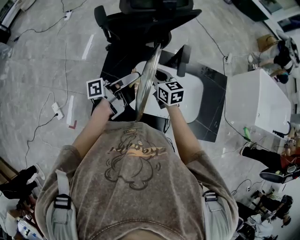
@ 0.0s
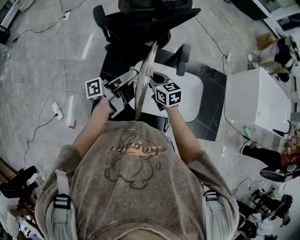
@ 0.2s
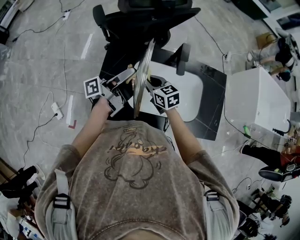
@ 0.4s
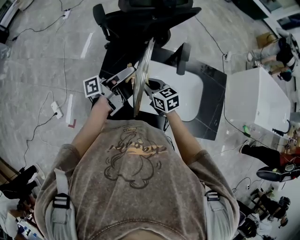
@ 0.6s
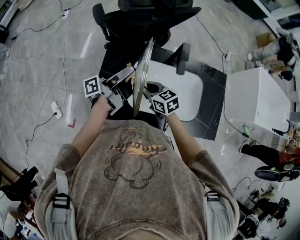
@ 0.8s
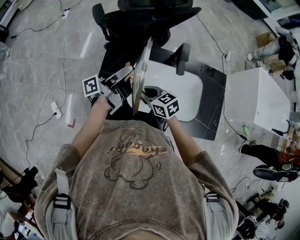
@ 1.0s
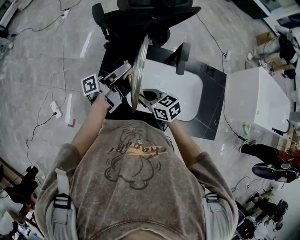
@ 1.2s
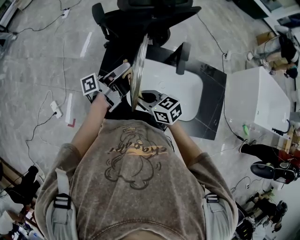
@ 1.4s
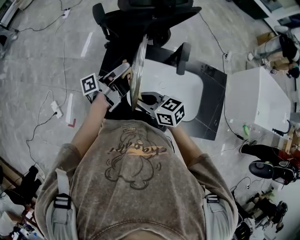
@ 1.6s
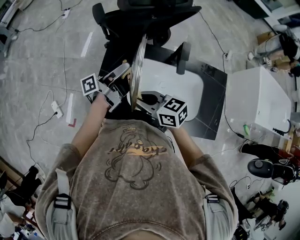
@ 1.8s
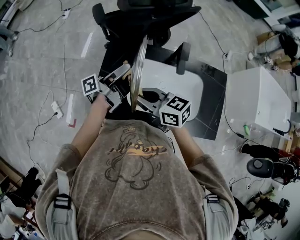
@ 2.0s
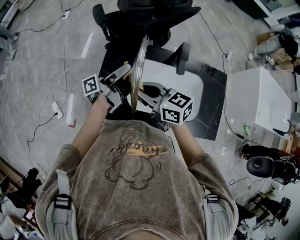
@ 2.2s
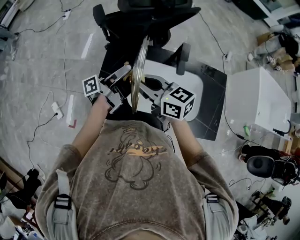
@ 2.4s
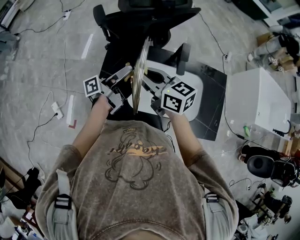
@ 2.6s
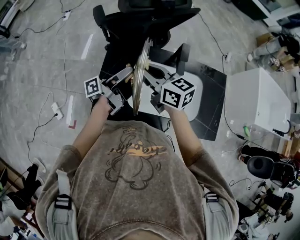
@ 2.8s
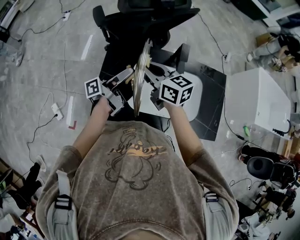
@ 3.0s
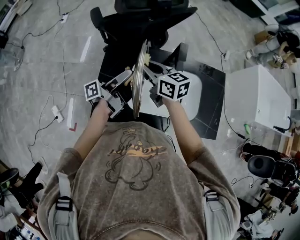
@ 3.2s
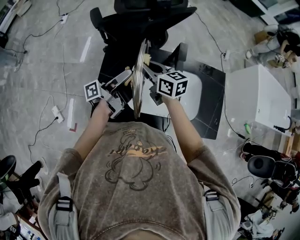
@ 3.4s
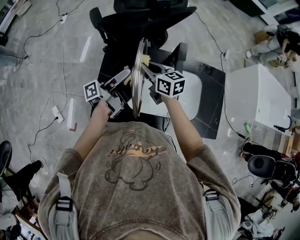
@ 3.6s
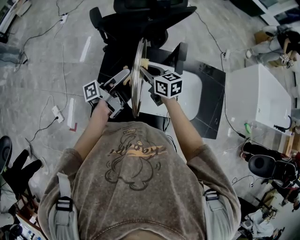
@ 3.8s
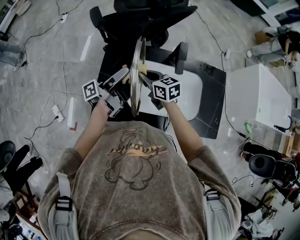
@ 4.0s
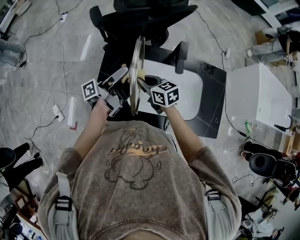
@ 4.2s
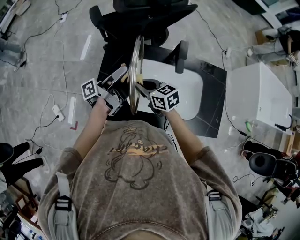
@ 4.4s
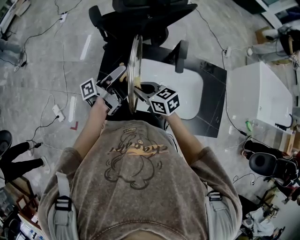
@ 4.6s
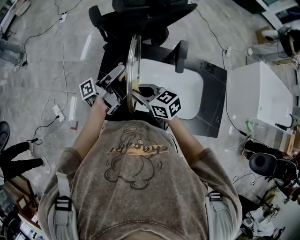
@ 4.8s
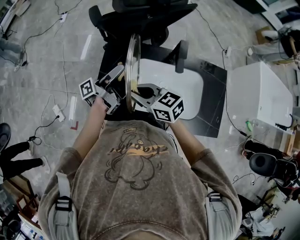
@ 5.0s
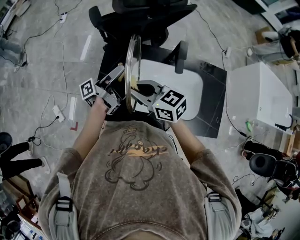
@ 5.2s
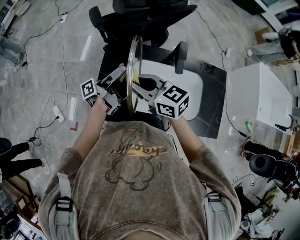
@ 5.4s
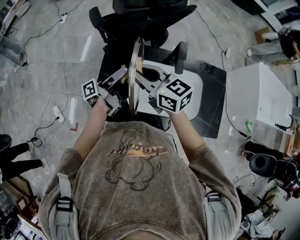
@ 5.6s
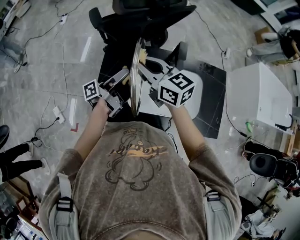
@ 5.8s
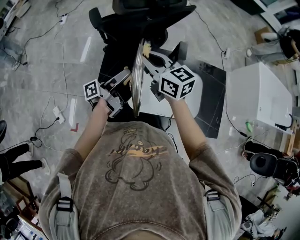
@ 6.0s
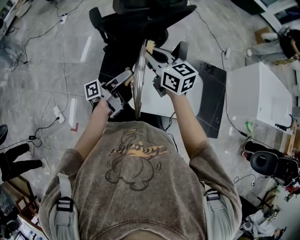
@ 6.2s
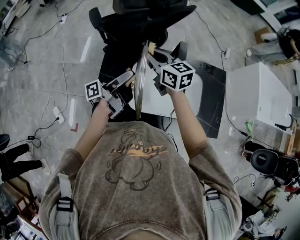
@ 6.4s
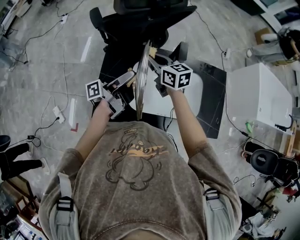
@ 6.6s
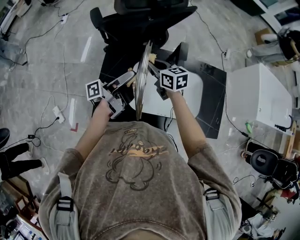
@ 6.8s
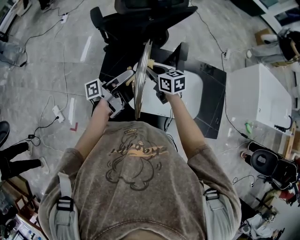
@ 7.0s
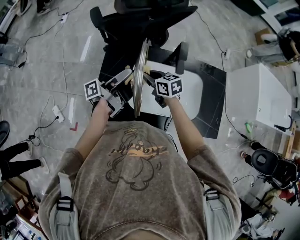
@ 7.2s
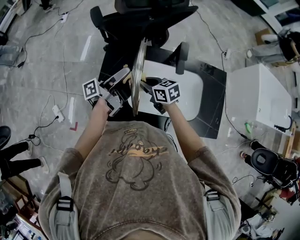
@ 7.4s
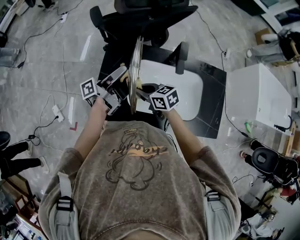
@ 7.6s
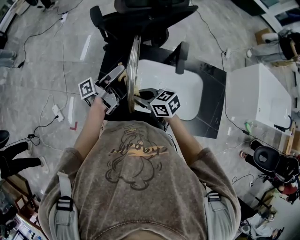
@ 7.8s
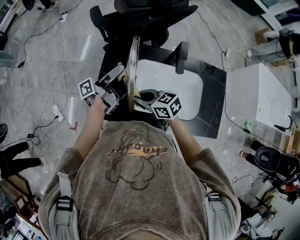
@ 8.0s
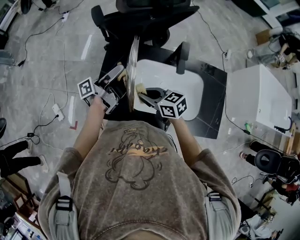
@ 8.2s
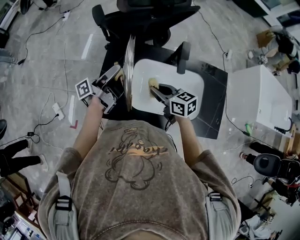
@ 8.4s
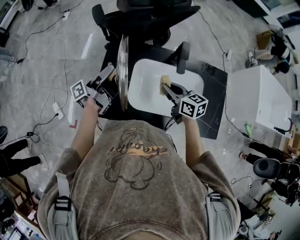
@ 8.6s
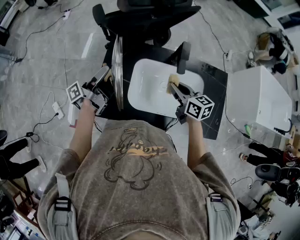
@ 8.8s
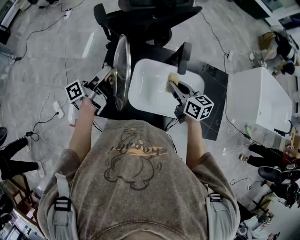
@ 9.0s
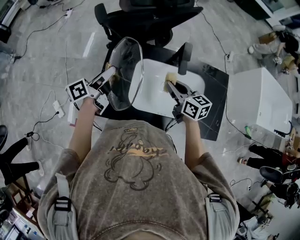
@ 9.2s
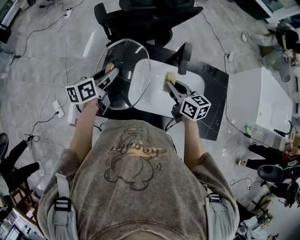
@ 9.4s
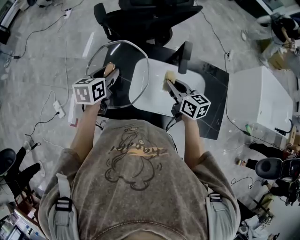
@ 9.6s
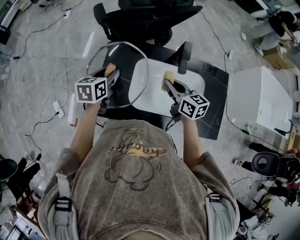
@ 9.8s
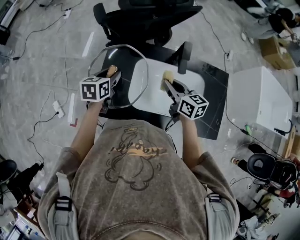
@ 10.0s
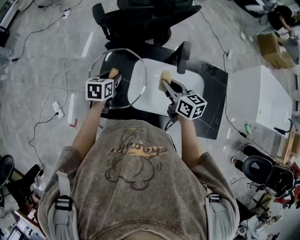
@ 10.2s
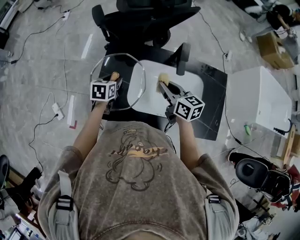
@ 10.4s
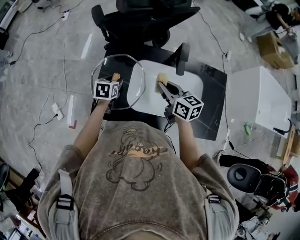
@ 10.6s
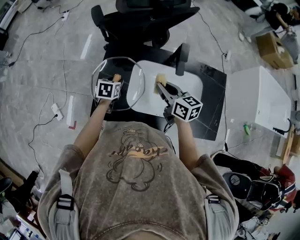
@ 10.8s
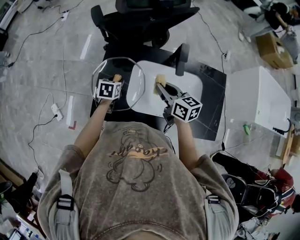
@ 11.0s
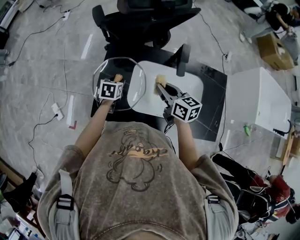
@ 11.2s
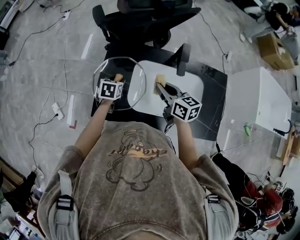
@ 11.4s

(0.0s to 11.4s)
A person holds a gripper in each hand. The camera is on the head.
0.0s - 1.4s: The right gripper goes some 15 cm backward and to the left, and changes its angle by some 30 degrees.
1.4s - 2.8s: The right gripper moves upward and forward, approximately 15 cm, and rotates approximately 20 degrees.
2.8s - 4.2s: The right gripper heads downward, covering roughly 15 cm.
4.2s - 5.6s: The right gripper heads upward, covering about 15 cm, and turns by some 20 degrees.
5.6s - 7.2s: The right gripper heads downward, covering some 20 cm, and swivels approximately 20 degrees.
7.2s - 8.6s: The right gripper moves backward, to the right and upward, approximately 10 cm, while the left gripper shifts approximately 5 cm to the left.
8.6s - 10.0s: The left gripper goes about 5 cm downward, and tilts its fingers about 50 degrees downward.
10.0s - 11.4s: The left gripper moves downward, approximately 10 cm.

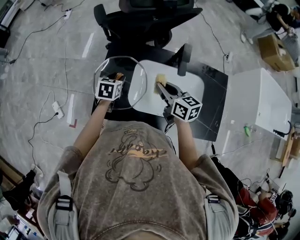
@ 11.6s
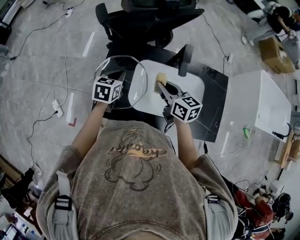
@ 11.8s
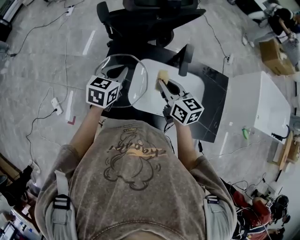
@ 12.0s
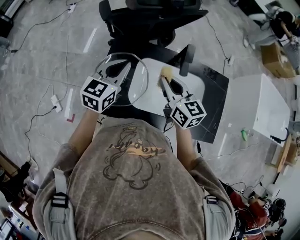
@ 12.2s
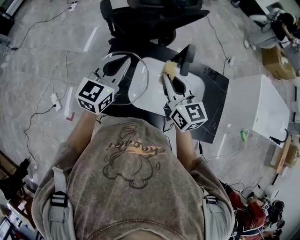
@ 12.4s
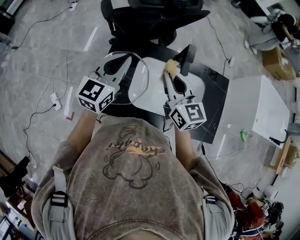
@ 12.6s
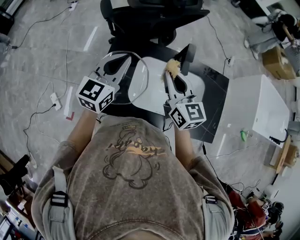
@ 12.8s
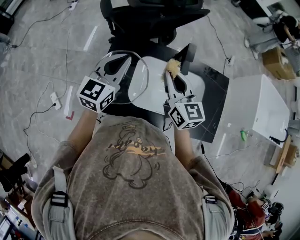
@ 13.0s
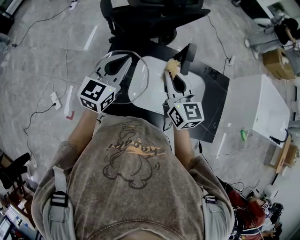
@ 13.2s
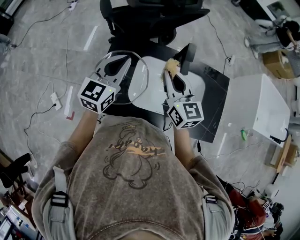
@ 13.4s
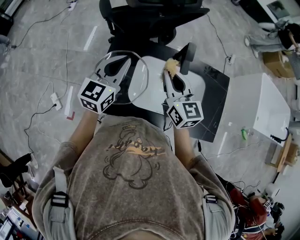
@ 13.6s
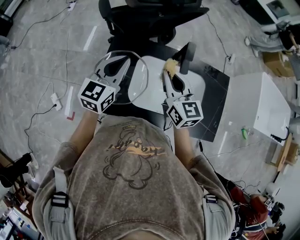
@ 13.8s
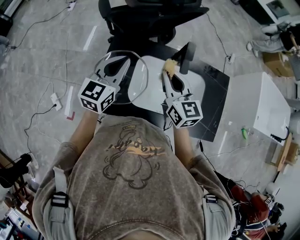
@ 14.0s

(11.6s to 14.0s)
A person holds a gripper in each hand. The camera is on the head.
11.6s - 12.8s: The left gripper goes approximately 20 cm upward, points its fingers some 40 degrees further upward, and closes its fingers; the right gripper heads upward, covering roughly 10 cm, and changes its angle by approximately 30 degrees.
12.8s - 14.0s: The grippers make only small movements.

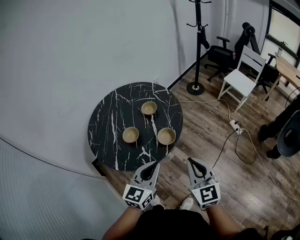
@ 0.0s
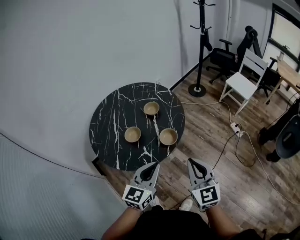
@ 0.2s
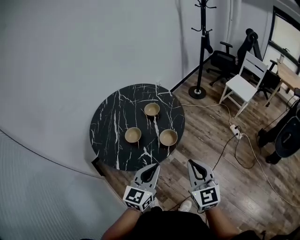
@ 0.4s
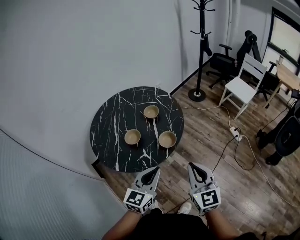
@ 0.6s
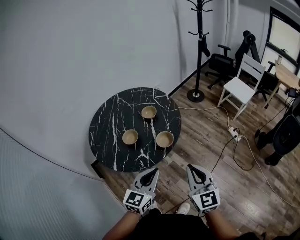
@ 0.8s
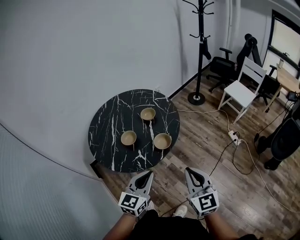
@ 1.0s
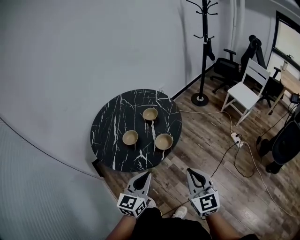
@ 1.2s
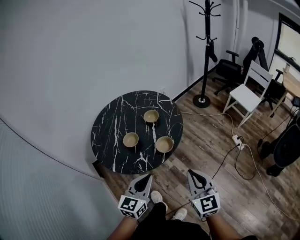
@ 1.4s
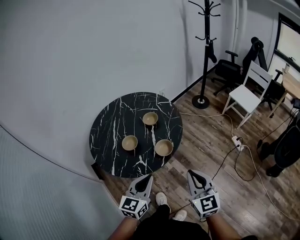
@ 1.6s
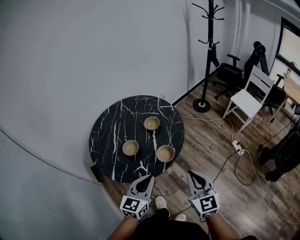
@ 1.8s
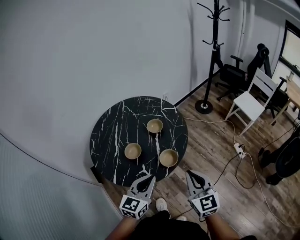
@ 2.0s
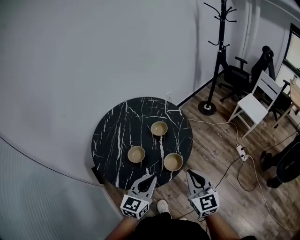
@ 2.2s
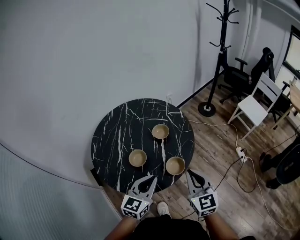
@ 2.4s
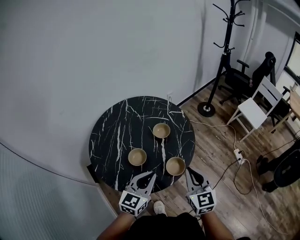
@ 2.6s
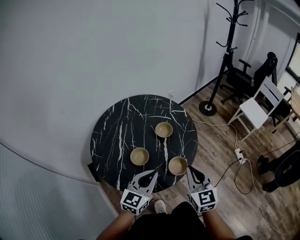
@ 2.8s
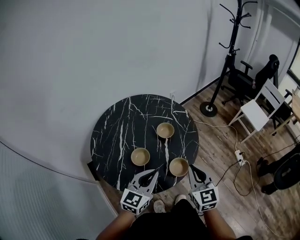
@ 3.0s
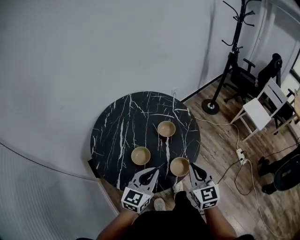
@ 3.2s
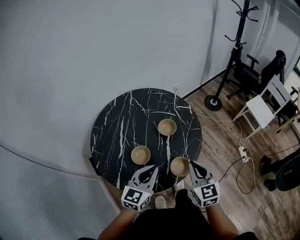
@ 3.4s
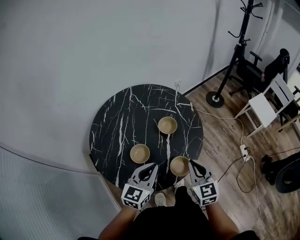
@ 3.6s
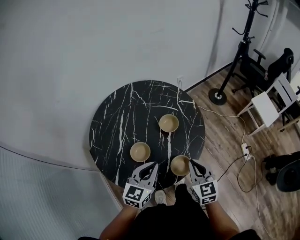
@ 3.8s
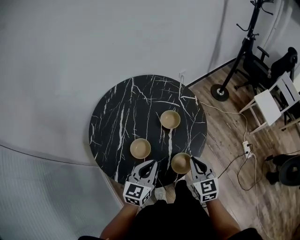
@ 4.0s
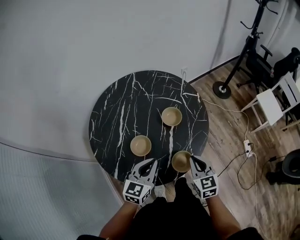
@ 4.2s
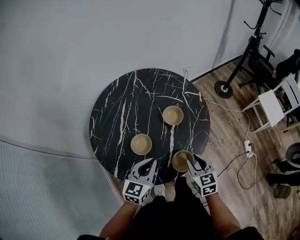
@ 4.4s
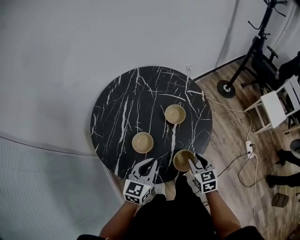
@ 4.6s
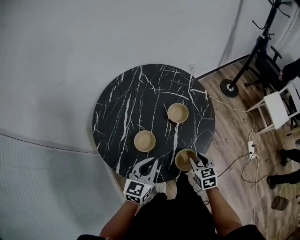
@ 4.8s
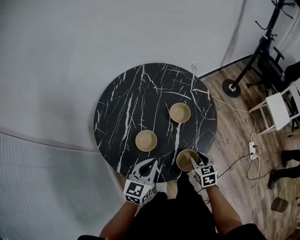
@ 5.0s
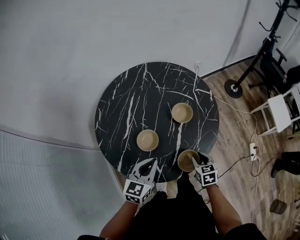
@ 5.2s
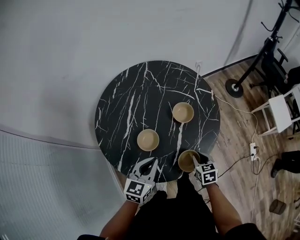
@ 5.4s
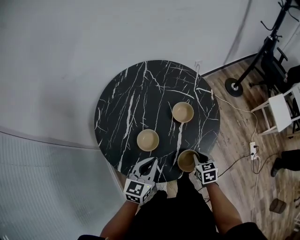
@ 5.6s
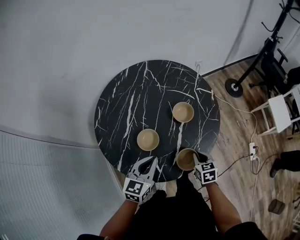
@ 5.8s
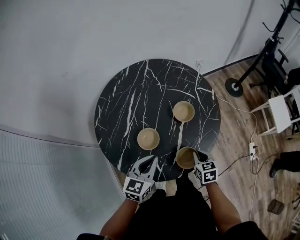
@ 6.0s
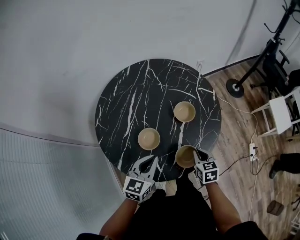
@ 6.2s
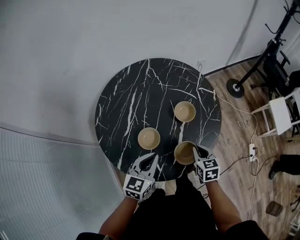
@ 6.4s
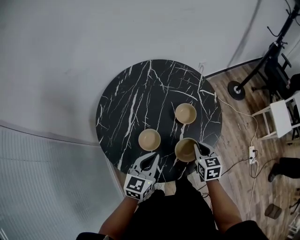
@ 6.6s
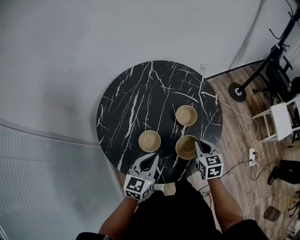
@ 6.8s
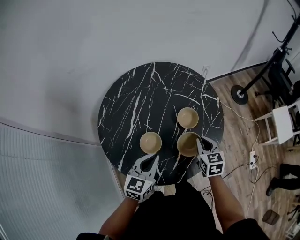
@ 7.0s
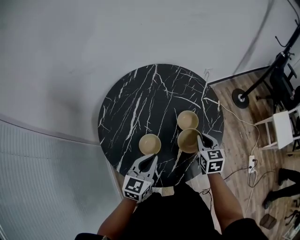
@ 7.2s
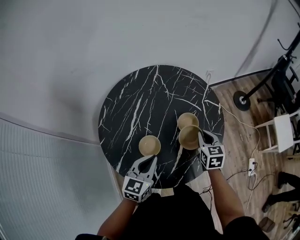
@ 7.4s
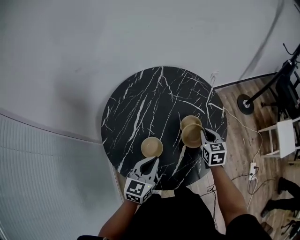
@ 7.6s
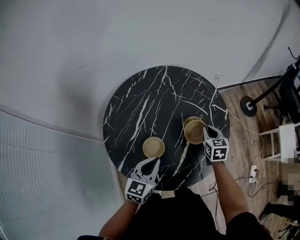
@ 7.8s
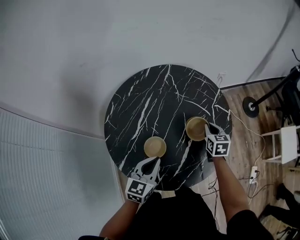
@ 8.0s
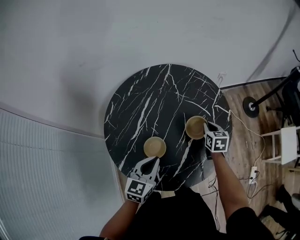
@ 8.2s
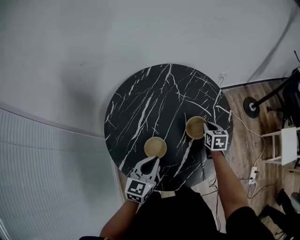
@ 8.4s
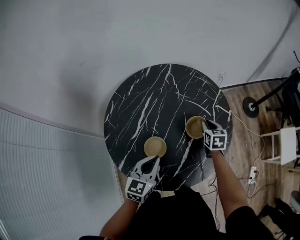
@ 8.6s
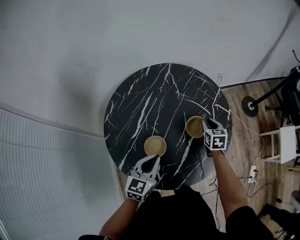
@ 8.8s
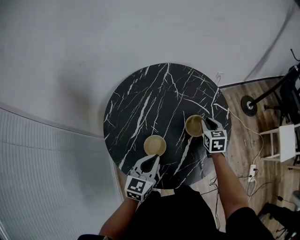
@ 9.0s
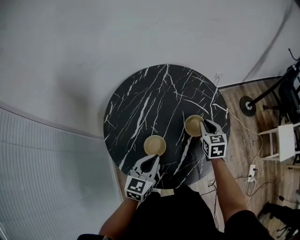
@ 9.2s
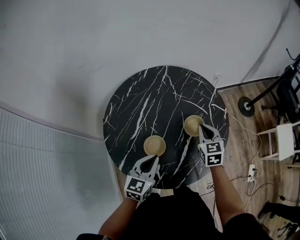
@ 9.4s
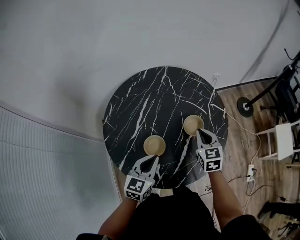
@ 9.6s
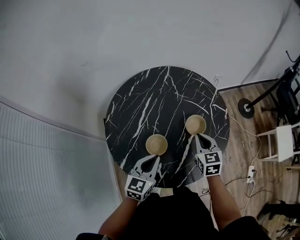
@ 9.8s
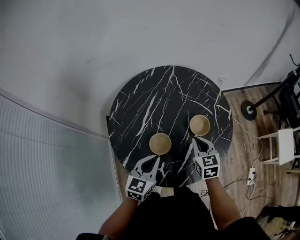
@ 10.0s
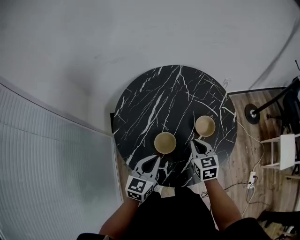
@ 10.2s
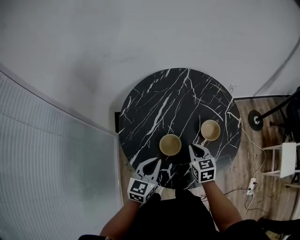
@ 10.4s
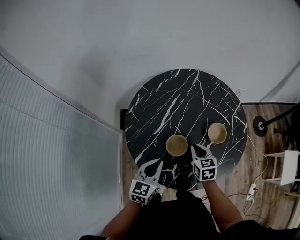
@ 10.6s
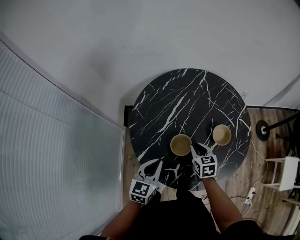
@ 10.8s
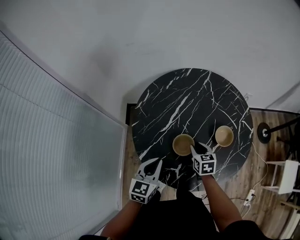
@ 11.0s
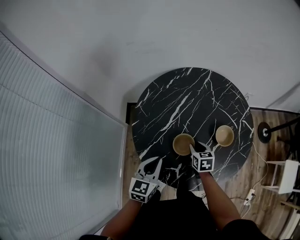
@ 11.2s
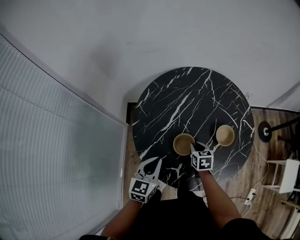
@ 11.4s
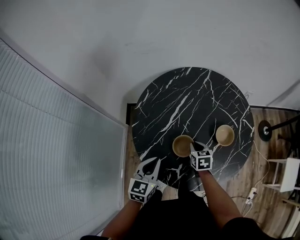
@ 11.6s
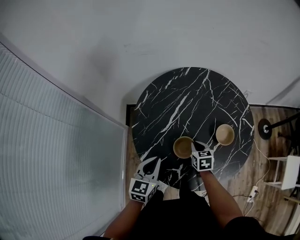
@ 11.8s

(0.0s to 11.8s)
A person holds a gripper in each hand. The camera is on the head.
0.0s - 1.4s: The grippers stay close to where they were, moving slightly.
1.4s - 3.0s: Both grippers move forward and to the left, approximately 20 cm.
3.0s - 4.4s: The left gripper is displaced downward by roughly 10 cm; the right gripper moves downward, about 15 cm, turns by about 20 degrees, and opens.
4.4s - 6.0s: The right gripper travels downward by about 10 cm, and closes up.
6.0s - 7.4s: The right gripper moves forward and upward, approximately 20 cm.
7.4s - 8.8s: The right gripper shifts approximately 10 cm forward.
8.8s - 10.4s: The left gripper travels to the left by approximately 5 cm. The right gripper is displaced to the left and backward by some 20 cm, and closes its fingers.
10.4s - 11.8s: The right gripper moves downward and to the left, some 10 cm, and opens, then closes once more, while the left gripper moves to the left, some 5 cm.
